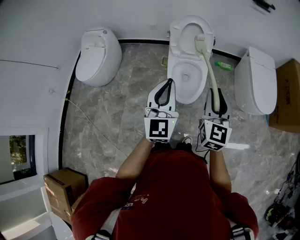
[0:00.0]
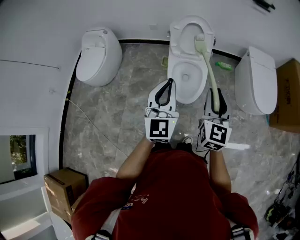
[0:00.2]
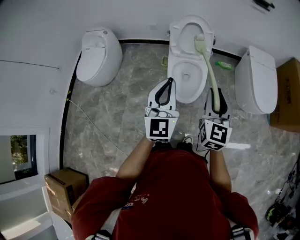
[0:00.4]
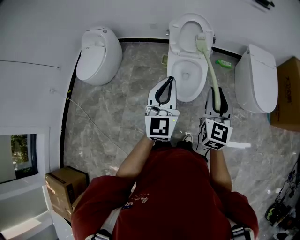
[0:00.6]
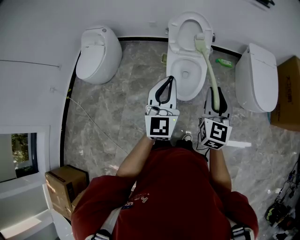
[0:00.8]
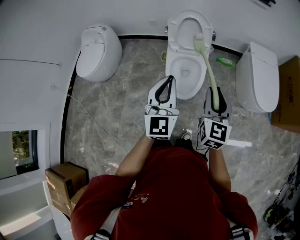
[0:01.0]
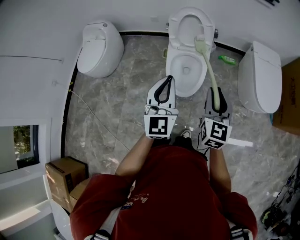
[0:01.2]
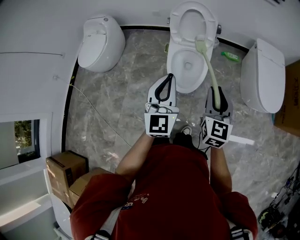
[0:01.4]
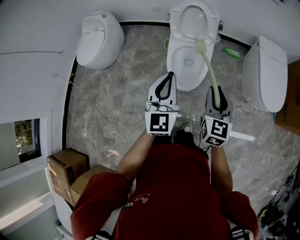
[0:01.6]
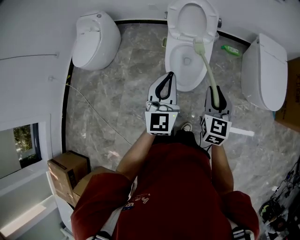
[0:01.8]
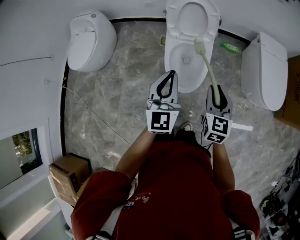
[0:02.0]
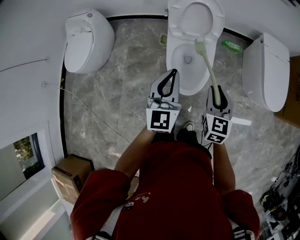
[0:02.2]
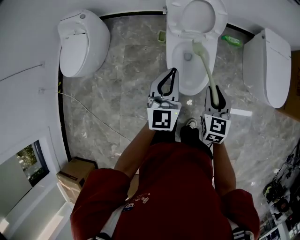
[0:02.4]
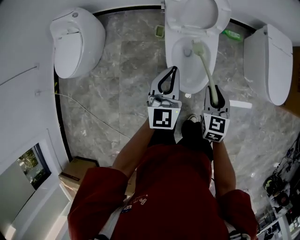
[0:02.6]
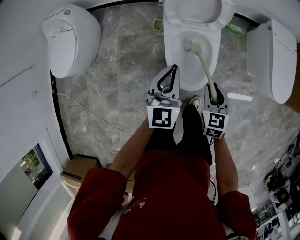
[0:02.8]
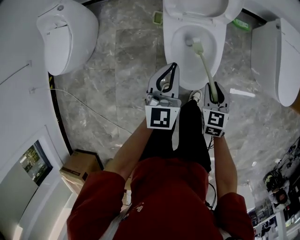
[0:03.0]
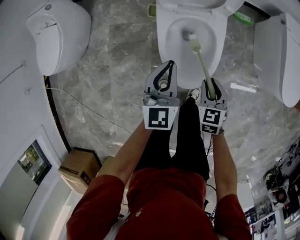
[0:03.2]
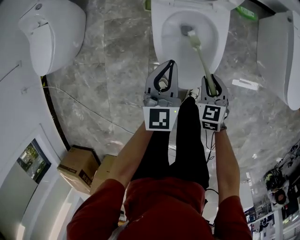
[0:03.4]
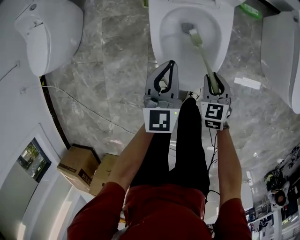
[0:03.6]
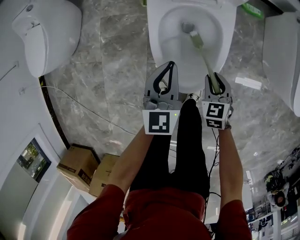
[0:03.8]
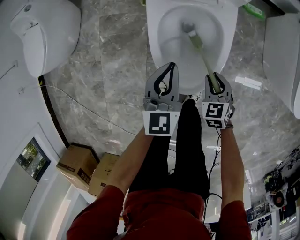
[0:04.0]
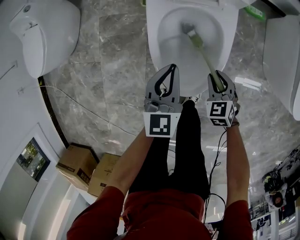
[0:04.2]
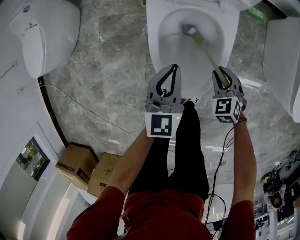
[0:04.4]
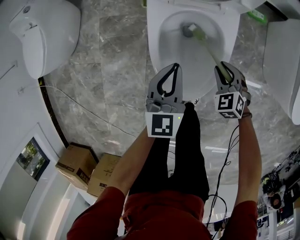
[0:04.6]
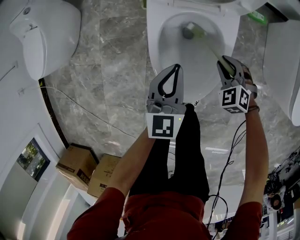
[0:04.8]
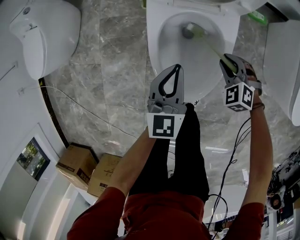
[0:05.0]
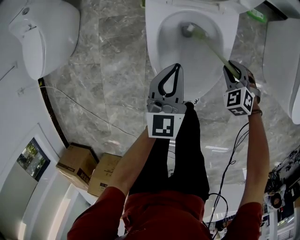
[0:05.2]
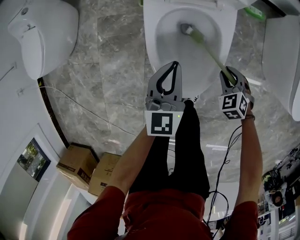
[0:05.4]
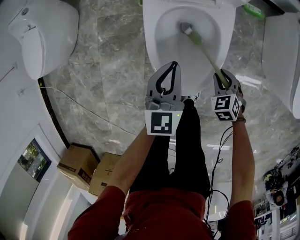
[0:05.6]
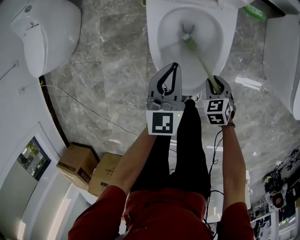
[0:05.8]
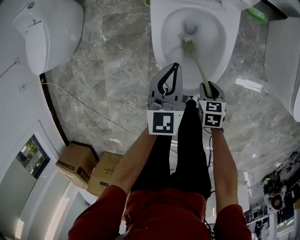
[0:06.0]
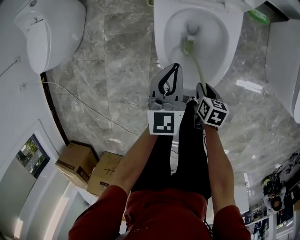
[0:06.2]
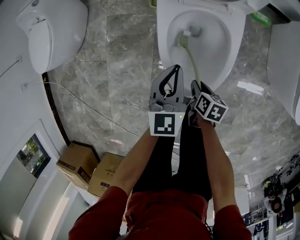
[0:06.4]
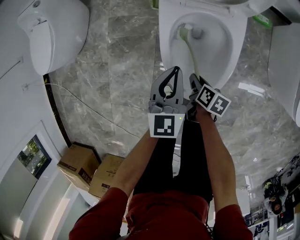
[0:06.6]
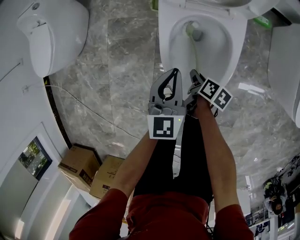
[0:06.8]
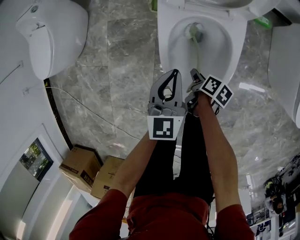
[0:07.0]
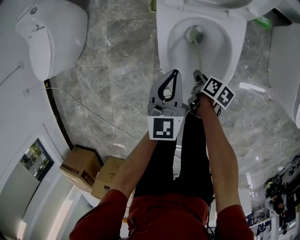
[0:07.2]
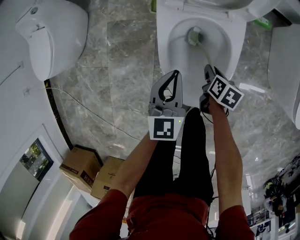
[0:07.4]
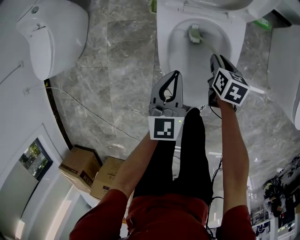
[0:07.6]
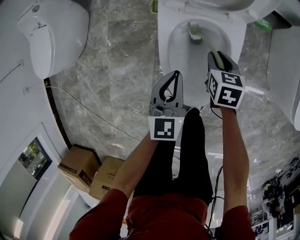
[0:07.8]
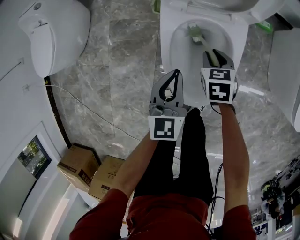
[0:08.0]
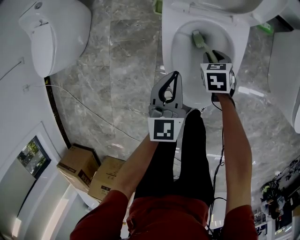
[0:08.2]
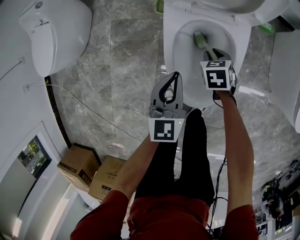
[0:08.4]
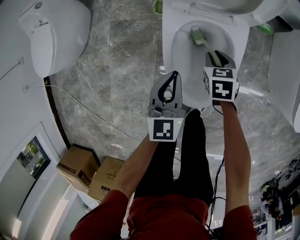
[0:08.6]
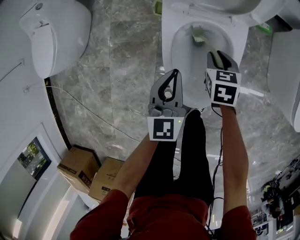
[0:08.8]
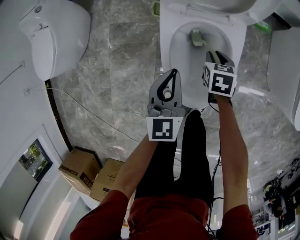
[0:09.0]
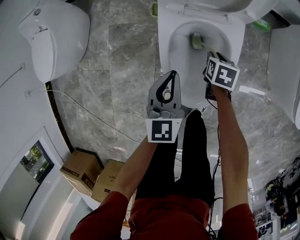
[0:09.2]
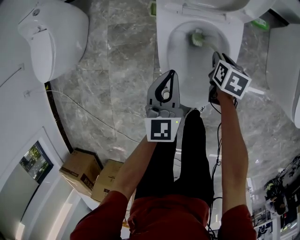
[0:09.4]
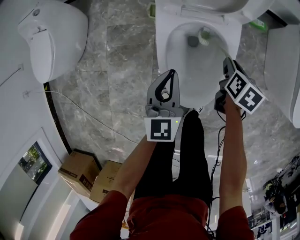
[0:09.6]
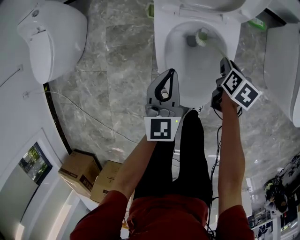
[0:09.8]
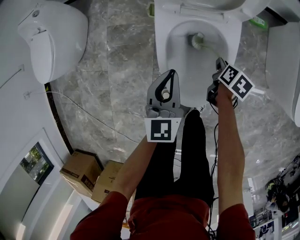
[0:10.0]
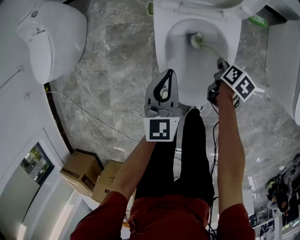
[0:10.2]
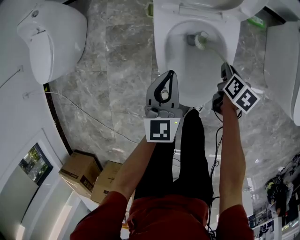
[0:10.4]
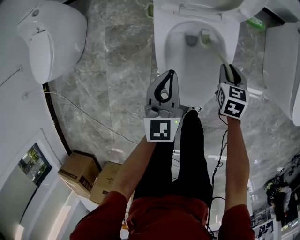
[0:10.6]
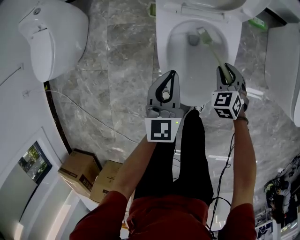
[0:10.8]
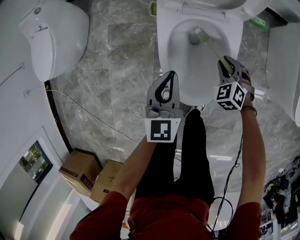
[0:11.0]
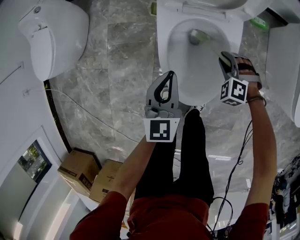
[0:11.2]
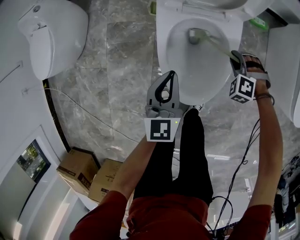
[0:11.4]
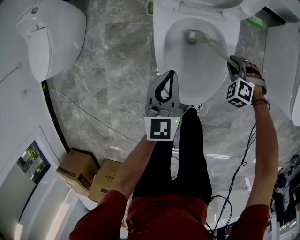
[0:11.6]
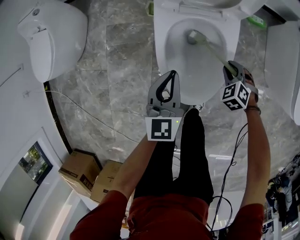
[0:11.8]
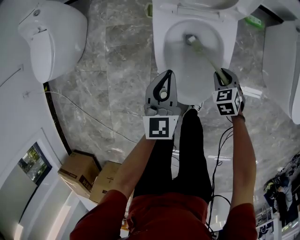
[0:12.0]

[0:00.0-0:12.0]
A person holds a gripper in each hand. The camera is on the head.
0:00.0 to 0:01.6: The two grippers go some 10 cm downward and to the right.
0:01.6 to 0:03.0: The right gripper travels downward and forward by roughly 30 cm, and swivels about 30 degrees. The left gripper goes about 30 cm downward, forward and to the left.
0:03.0 to 0:04.4: Both grippers move downward, some 20 cm. The right gripper changes its angle by approximately 30 degrees.
0:04.4 to 0:06.0: The right gripper shifts roughly 10 cm backward, and swivels about 40 degrees.
0:06.0 to 0:07.6: The right gripper travels forward by about 15 cm.
0:09.0 to 0:10.4: The right gripper shifts roughly 10 cm to the right, and swivels roughly 30 degrees.
0:10.4 to 0:12.0: The right gripper moves some 5 cm, and rotates around the line of its fingers by roughly 60 degrees, counterclockwise from behind.

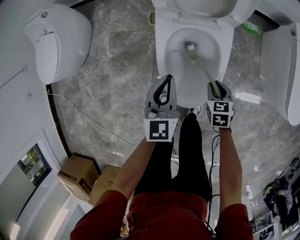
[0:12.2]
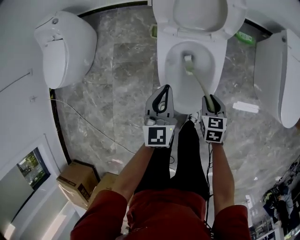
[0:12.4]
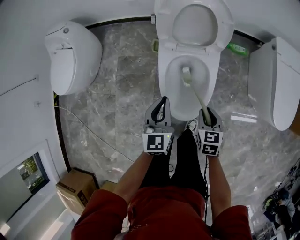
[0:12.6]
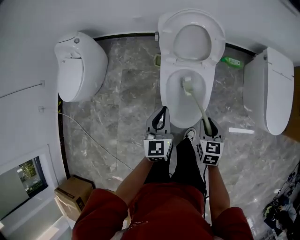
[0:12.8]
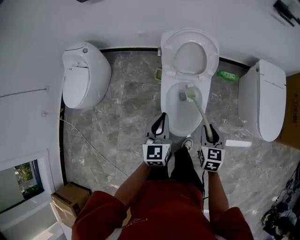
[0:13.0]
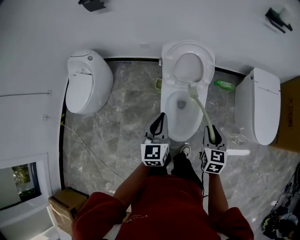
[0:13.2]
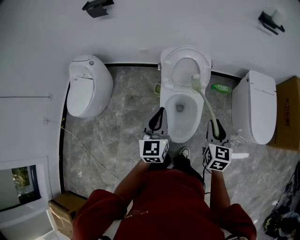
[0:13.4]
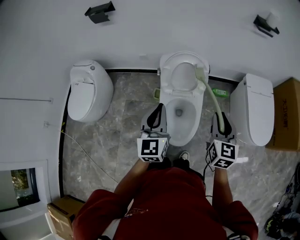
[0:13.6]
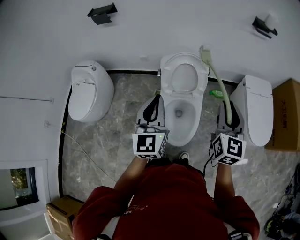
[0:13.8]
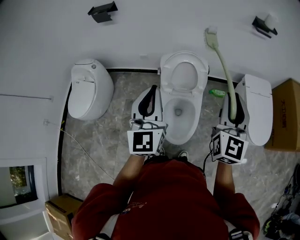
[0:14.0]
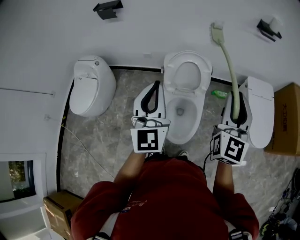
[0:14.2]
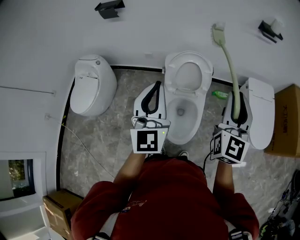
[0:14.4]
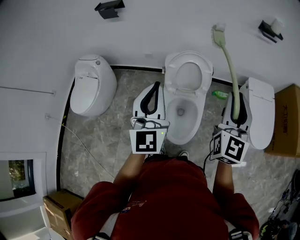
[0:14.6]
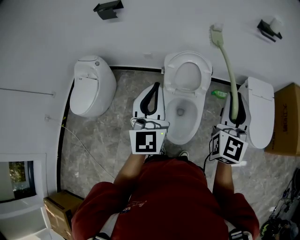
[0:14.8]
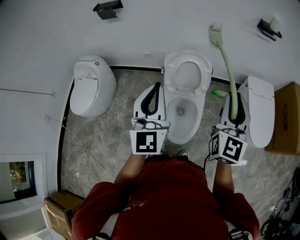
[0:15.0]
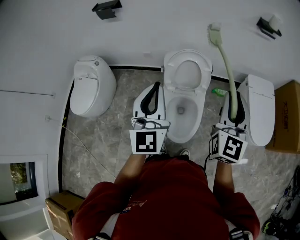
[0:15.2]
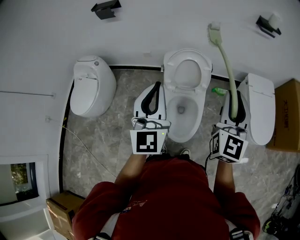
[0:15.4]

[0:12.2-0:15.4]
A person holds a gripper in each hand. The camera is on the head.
0:12.2 to 0:13.8: The grippers both shift upward by approximately 50 cm. The left gripper rotates about 30 degrees; the right gripper tips its fingers upward by about 50 degrees.
0:13.8 to 0:15.4: Both grippers travel together upward, approximately 5 cm.

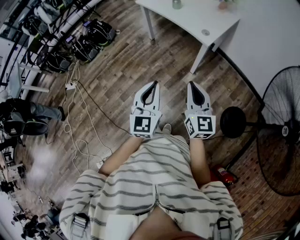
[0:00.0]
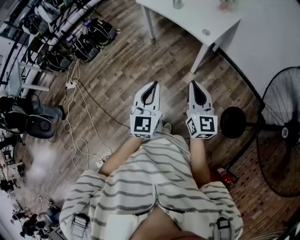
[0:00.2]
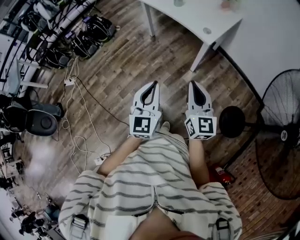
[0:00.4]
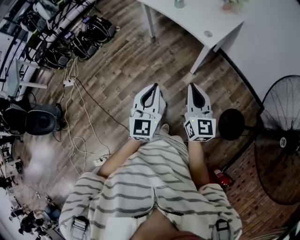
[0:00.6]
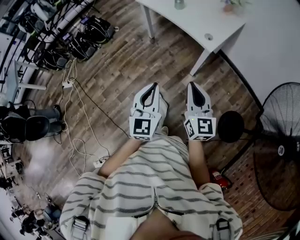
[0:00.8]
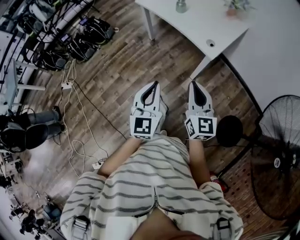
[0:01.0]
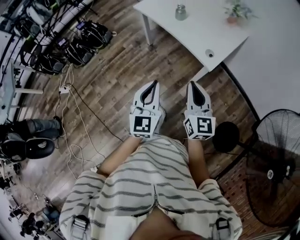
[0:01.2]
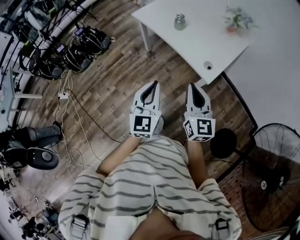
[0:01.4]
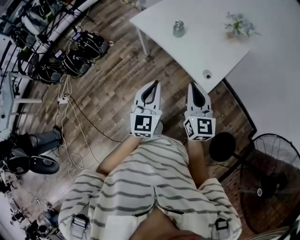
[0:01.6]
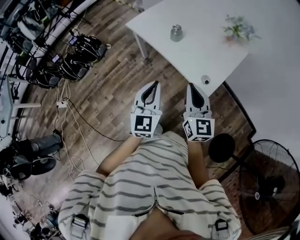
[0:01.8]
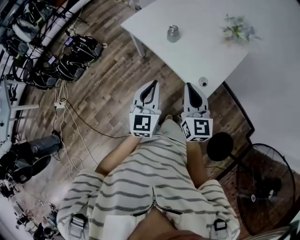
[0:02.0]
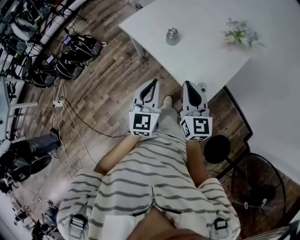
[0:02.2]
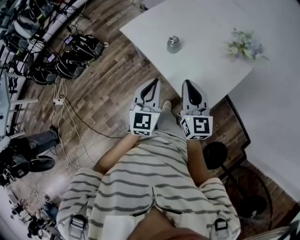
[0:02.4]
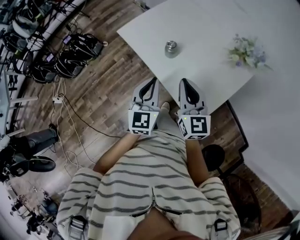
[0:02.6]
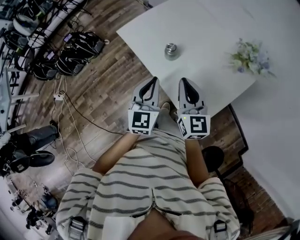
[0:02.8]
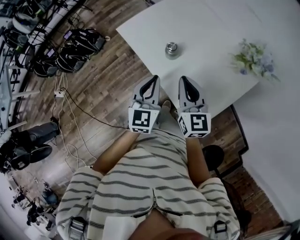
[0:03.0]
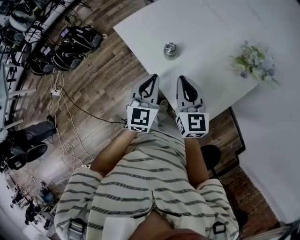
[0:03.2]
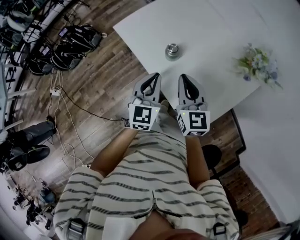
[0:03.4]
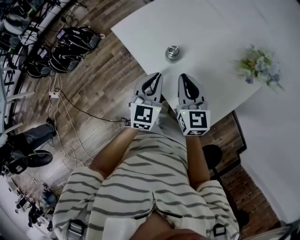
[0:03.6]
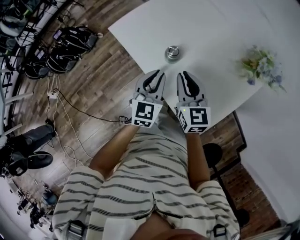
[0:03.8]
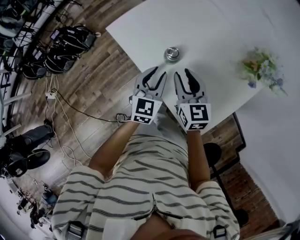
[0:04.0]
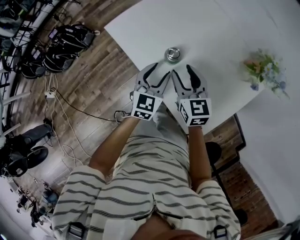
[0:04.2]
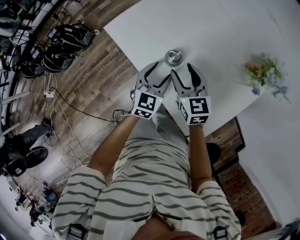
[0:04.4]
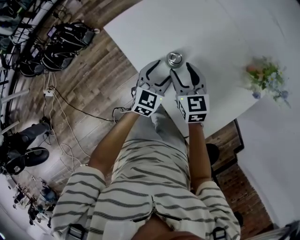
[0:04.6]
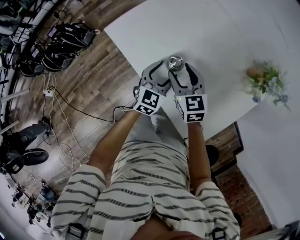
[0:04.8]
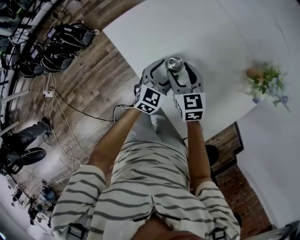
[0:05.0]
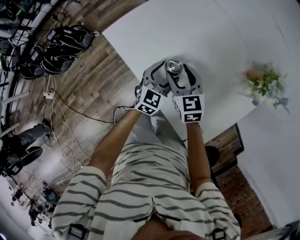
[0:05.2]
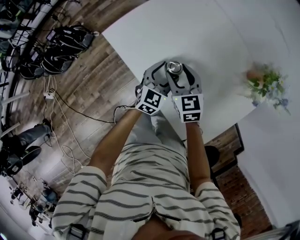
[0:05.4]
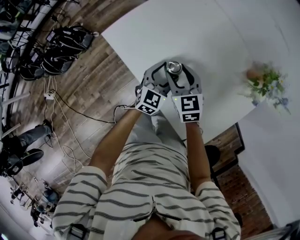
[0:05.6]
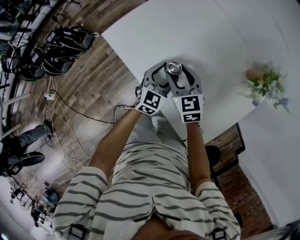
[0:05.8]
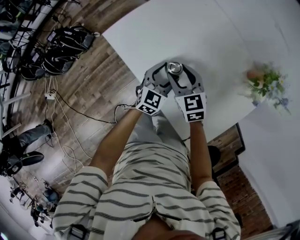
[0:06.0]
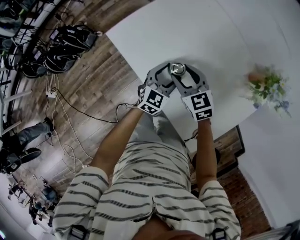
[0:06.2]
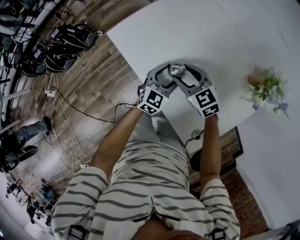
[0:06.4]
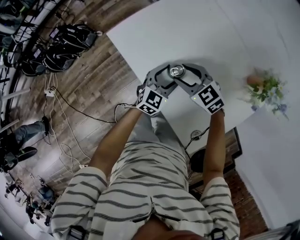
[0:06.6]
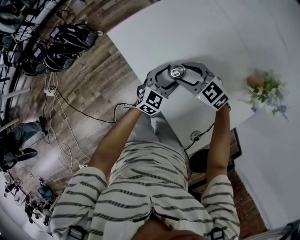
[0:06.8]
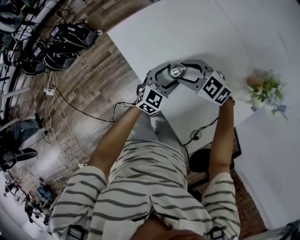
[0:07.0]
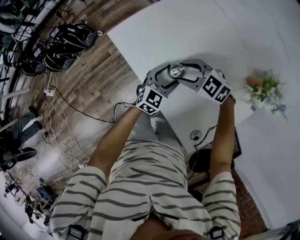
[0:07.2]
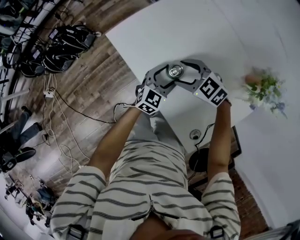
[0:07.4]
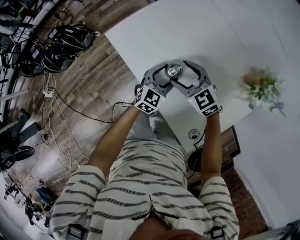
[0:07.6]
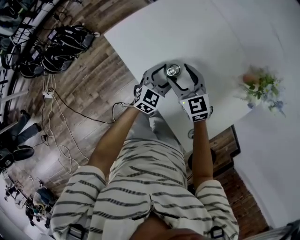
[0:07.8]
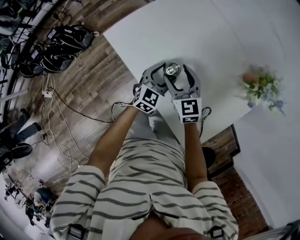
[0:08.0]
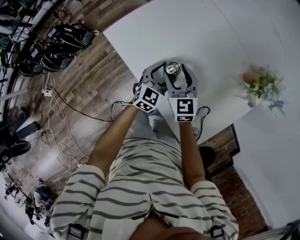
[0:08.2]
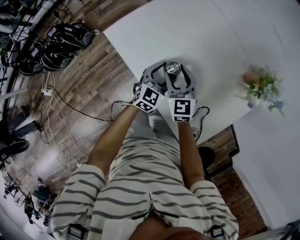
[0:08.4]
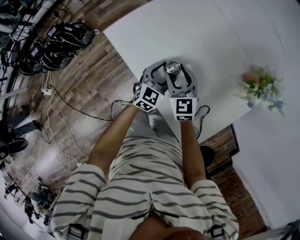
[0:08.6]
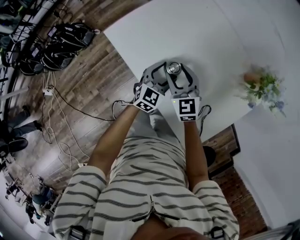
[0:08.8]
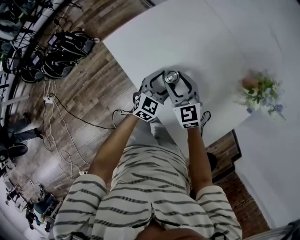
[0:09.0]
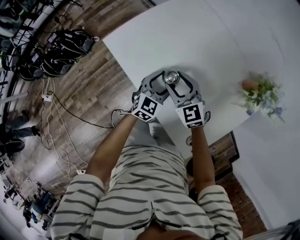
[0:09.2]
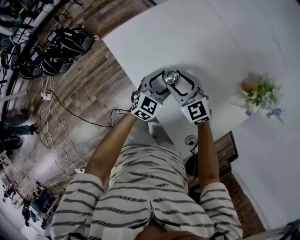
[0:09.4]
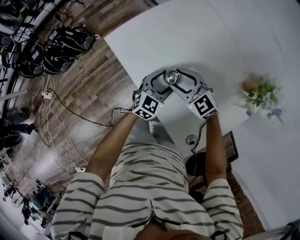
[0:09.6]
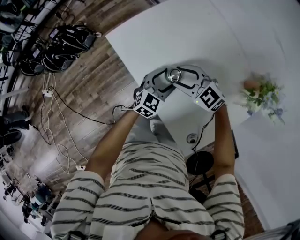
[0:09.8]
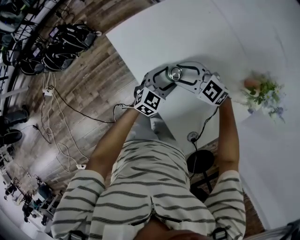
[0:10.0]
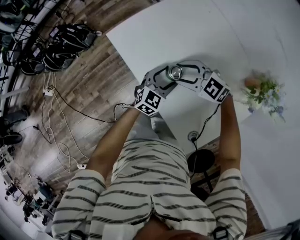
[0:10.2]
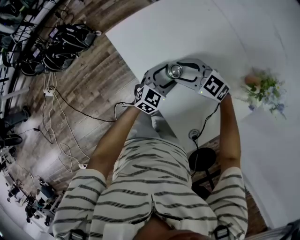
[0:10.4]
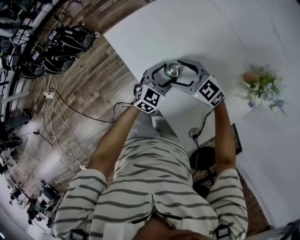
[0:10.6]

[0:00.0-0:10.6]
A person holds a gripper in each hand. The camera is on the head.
0:00.0 to 0:01.6: The two grippers go approximately 35 cm forward.
0:01.6 to 0:03.0: Both grippers travel together forward, about 30 cm.
0:03.0 to 0:04.6: The grippers both shift downward and forward by about 20 cm. The right gripper opens. Meanwhile the left gripper opens its fingers.
0:04.6 to 0:06.0: The grippers move only a little.
0:06.0 to 0:07.6: The right gripper turns by about 30 degrees.
0:07.6 to 0:09.0: The right gripper turns by about 20 degrees.
0:09.0 to 0:10.6: The right gripper changes its angle by about 40 degrees.
